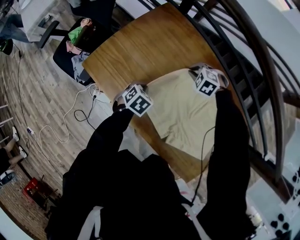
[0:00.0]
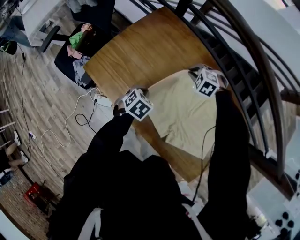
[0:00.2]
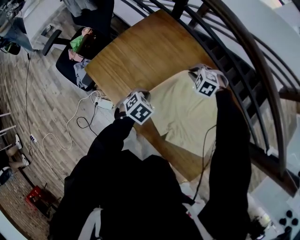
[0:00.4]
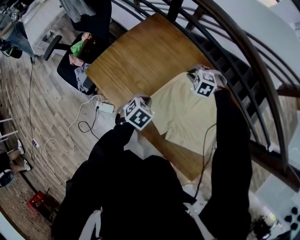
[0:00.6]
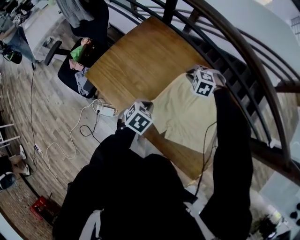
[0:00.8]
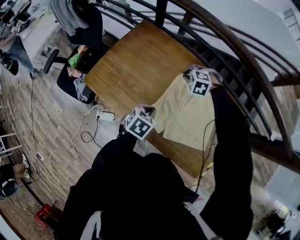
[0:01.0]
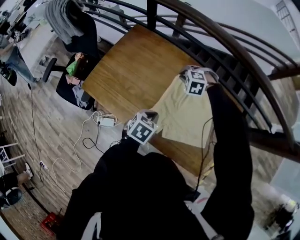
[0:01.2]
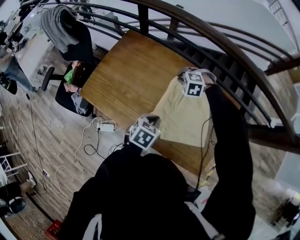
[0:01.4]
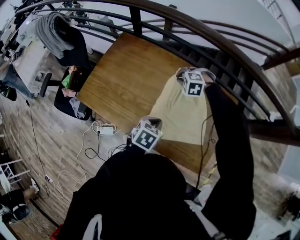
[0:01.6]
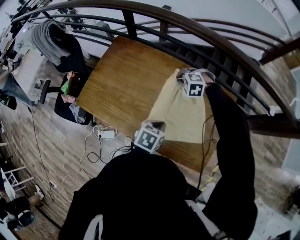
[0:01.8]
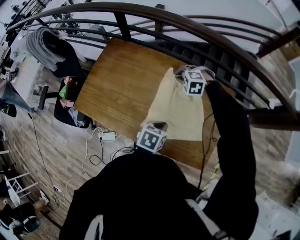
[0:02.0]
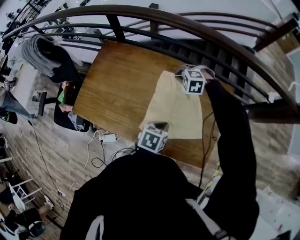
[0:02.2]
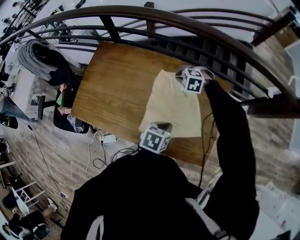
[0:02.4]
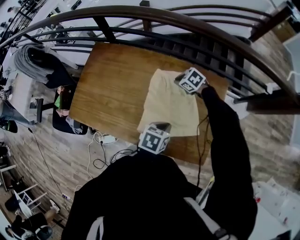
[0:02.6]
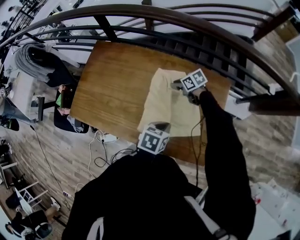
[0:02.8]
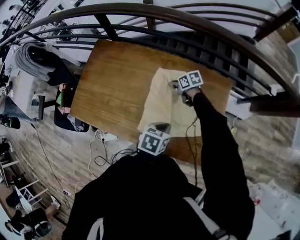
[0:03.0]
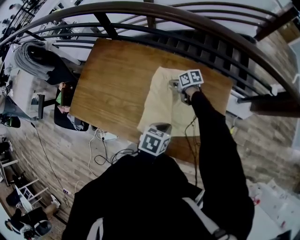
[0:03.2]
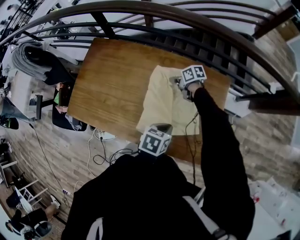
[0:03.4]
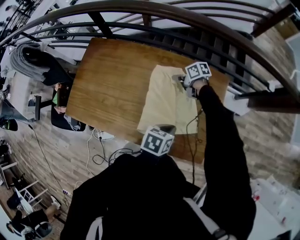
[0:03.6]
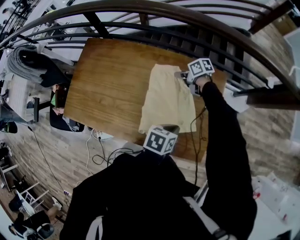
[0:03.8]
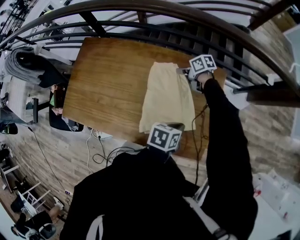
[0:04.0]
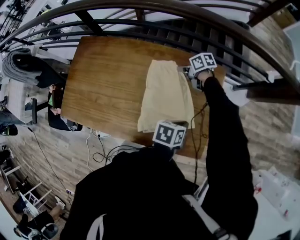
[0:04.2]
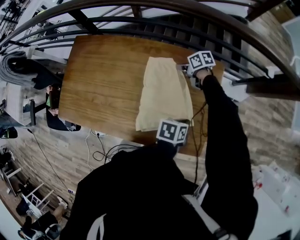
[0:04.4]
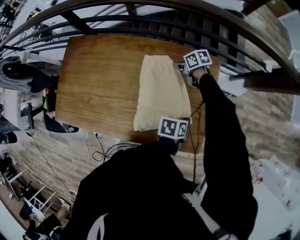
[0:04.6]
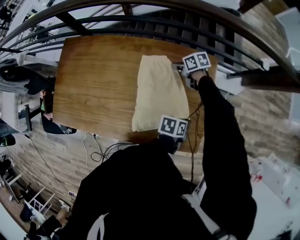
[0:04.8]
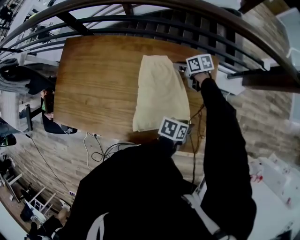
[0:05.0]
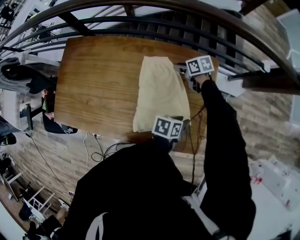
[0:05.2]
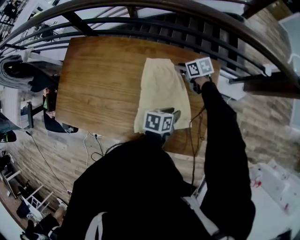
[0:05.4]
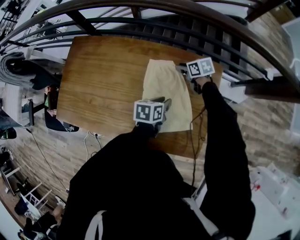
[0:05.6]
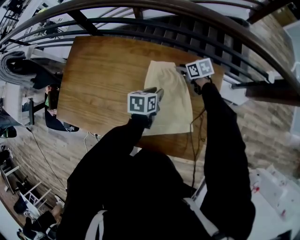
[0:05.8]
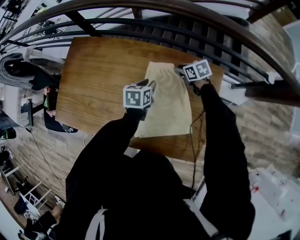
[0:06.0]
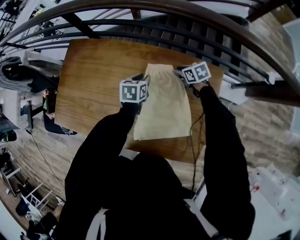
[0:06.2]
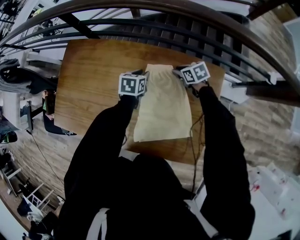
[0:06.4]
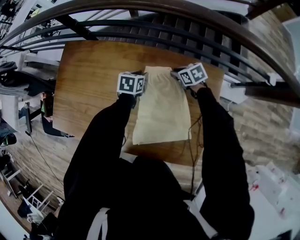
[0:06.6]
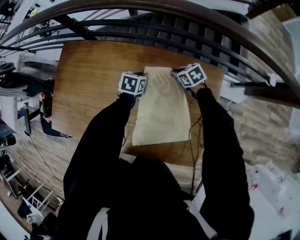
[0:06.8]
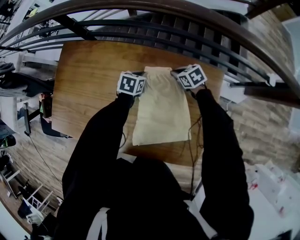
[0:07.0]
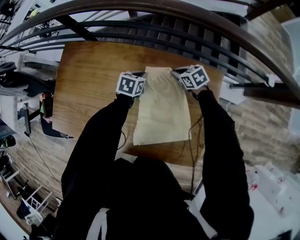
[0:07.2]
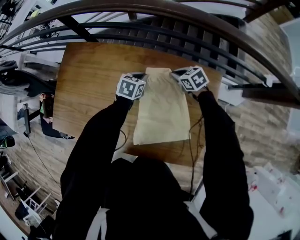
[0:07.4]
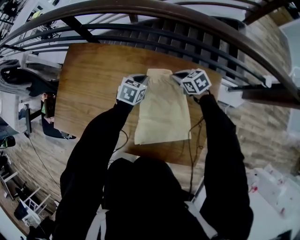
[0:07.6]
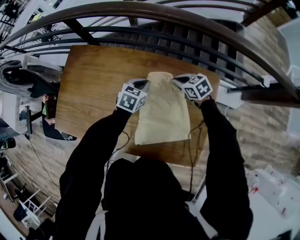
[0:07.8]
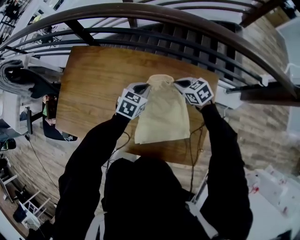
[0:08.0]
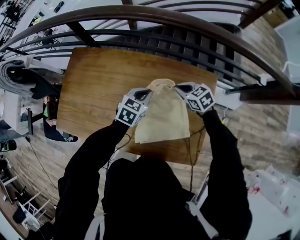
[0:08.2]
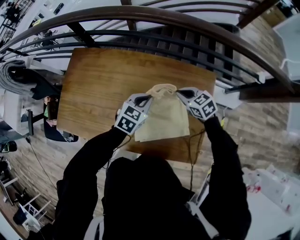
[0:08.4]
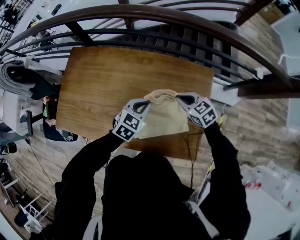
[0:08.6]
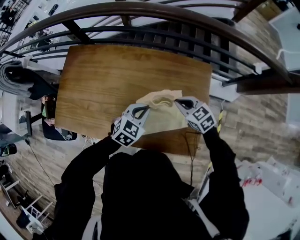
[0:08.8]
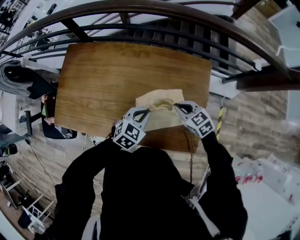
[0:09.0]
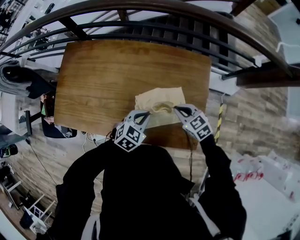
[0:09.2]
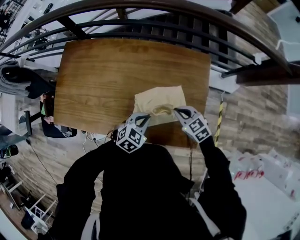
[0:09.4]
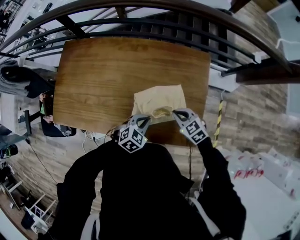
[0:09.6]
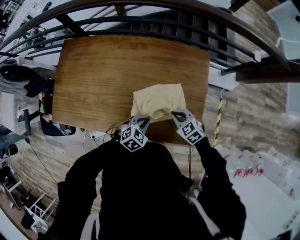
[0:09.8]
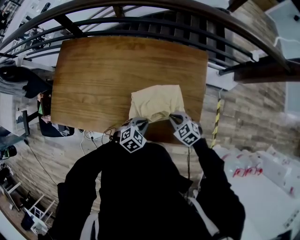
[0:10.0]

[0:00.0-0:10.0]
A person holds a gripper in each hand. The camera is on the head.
0:00.0 to 0:01.4: The right gripper is displaced upward, to the right and backward by approximately 20 cm. Meanwhile the left gripper shifts some 30 cm to the right, upward and backward.
0:01.4 to 0:02.8: The right gripper ends up approximately 15 cm from where it was, and twists about 80 degrees clockwise, seen from behind. Meanwhile the left gripper ends up approximately 15 cm from where it was.
0:02.8 to 0:04.2: The right gripper changes place by about 10 cm, and closes its fingers; the left gripper ends up about 15 cm from where it was.
0:04.2 to 0:05.8: The left gripper ends up approximately 20 cm from where it was, and opens its fingers.
0:05.8 to 0:07.2: The left gripper heads forward, covering about 15 cm, swivels approximately 20 degrees, and closes up.
0:07.2 to 0:08.6: The grippers both shift backward and upward by roughly 25 cm. The left gripper turns by approximately 30 degrees.
0:08.6 to 0:10.0: Both grippers travel together backward and downward, roughly 20 cm. The left gripper turns by about 20 degrees.

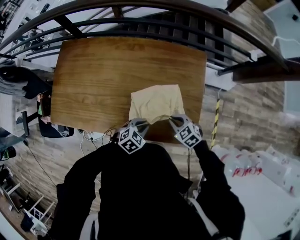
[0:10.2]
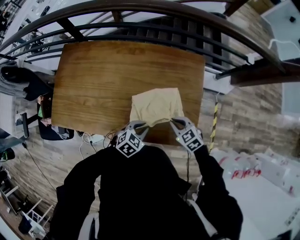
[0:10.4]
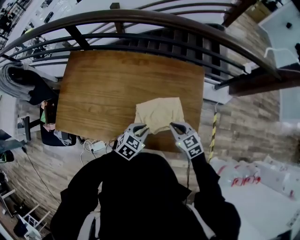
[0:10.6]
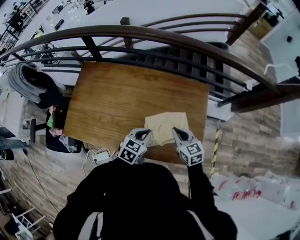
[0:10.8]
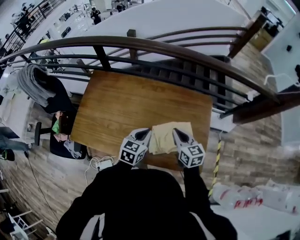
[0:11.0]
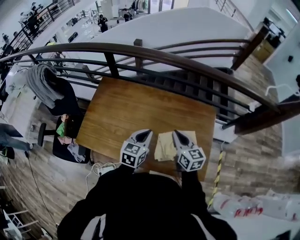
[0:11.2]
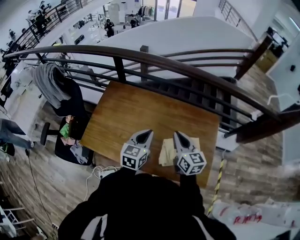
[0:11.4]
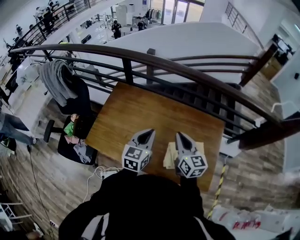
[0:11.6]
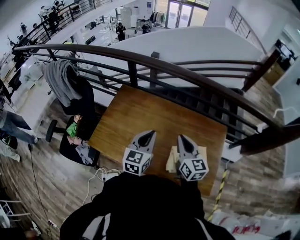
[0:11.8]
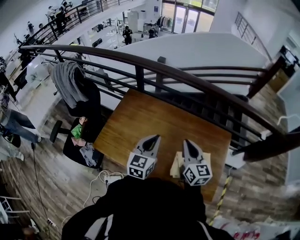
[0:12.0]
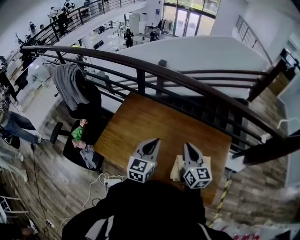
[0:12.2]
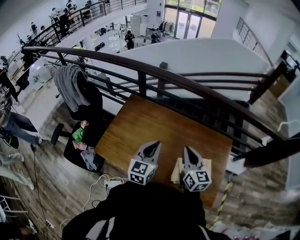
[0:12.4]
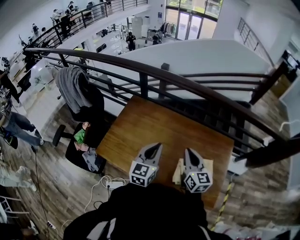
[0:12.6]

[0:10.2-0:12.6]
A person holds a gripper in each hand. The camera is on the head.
0:10.2 to 0:11.4: The right gripper is displaced upward and to the left by approximately 35 cm, and points its fingers approximately 40 degrees further upward, while the left gripper shifts approximately 35 cm upward, to the left and forward, and angles its fingers upward, by approximately 30 degrees.
0:11.4 to 0:12.6: The right gripper moves roughly 5 cm; the left gripper is displaced to the left by about 5 cm.

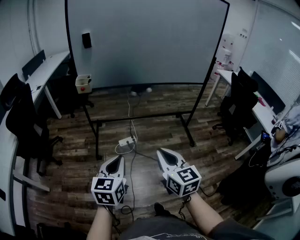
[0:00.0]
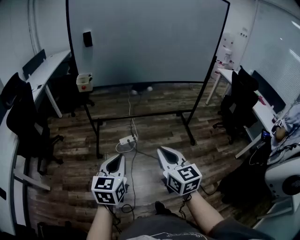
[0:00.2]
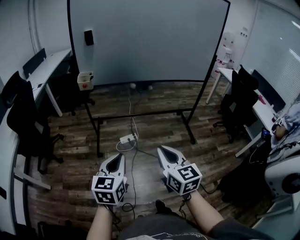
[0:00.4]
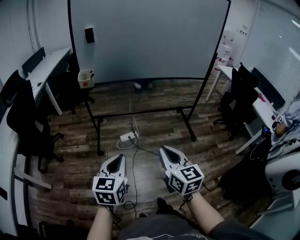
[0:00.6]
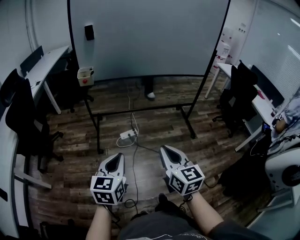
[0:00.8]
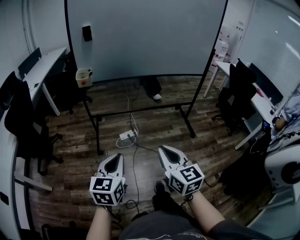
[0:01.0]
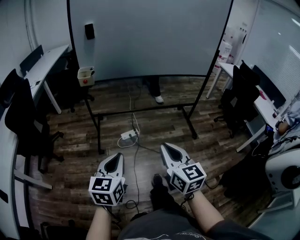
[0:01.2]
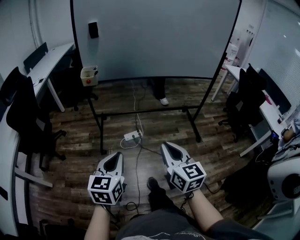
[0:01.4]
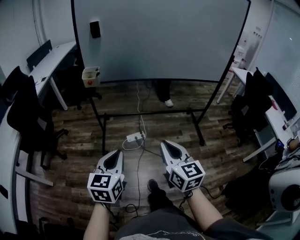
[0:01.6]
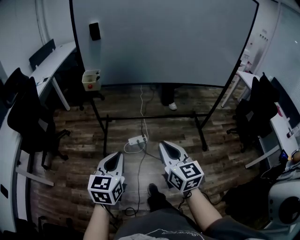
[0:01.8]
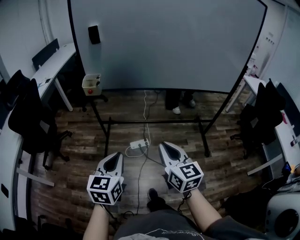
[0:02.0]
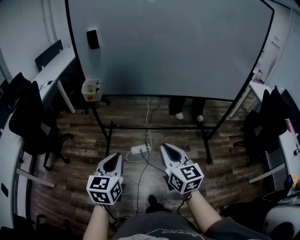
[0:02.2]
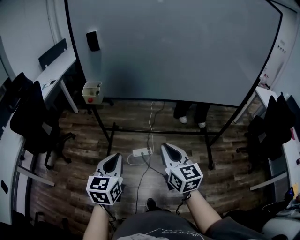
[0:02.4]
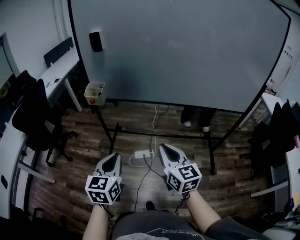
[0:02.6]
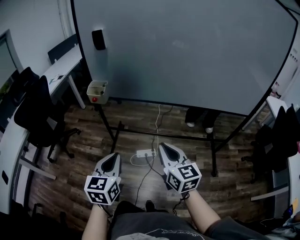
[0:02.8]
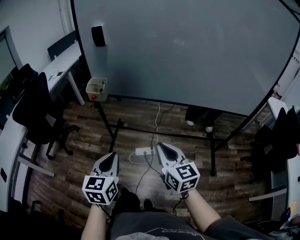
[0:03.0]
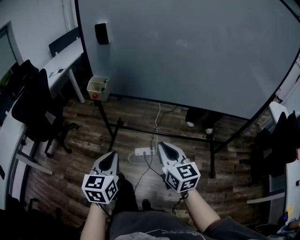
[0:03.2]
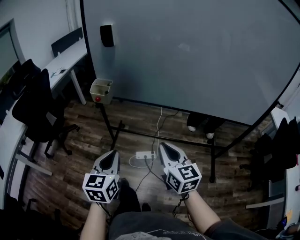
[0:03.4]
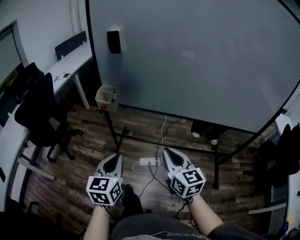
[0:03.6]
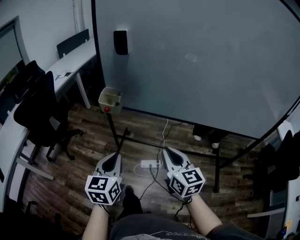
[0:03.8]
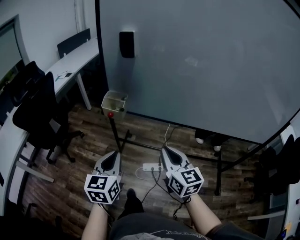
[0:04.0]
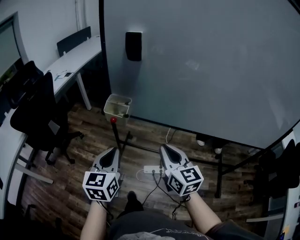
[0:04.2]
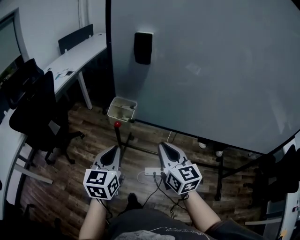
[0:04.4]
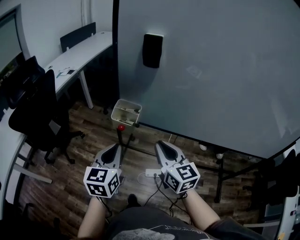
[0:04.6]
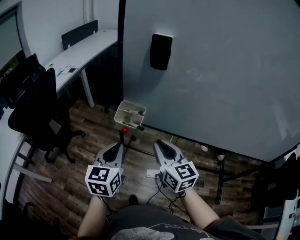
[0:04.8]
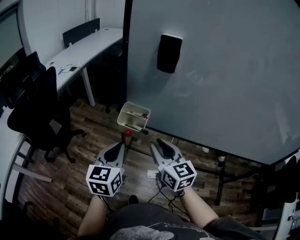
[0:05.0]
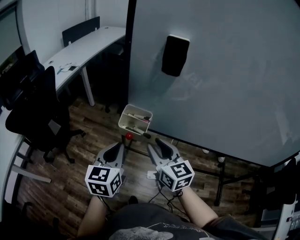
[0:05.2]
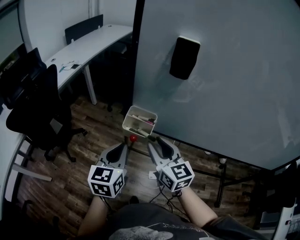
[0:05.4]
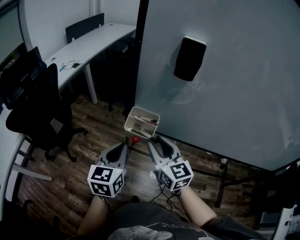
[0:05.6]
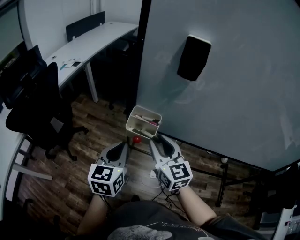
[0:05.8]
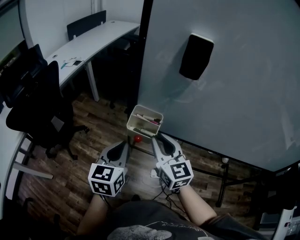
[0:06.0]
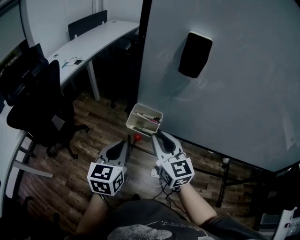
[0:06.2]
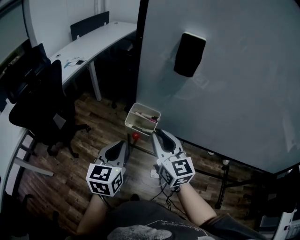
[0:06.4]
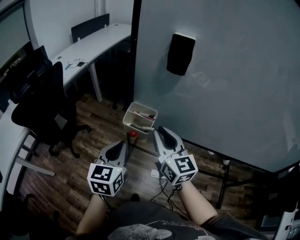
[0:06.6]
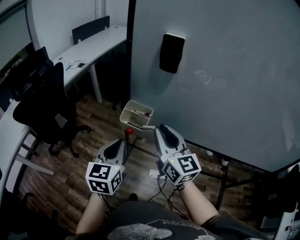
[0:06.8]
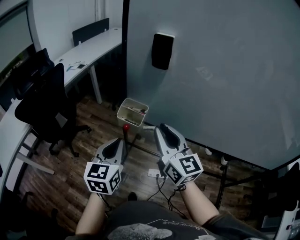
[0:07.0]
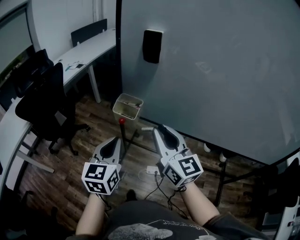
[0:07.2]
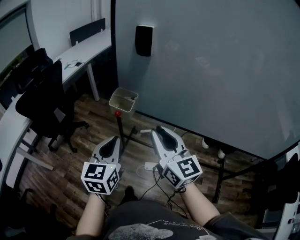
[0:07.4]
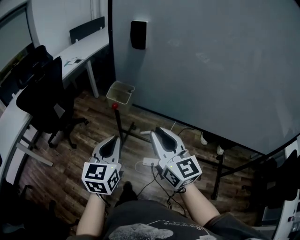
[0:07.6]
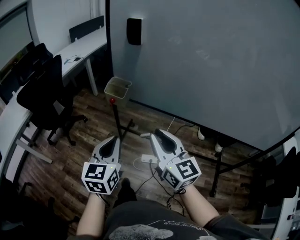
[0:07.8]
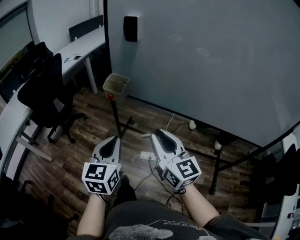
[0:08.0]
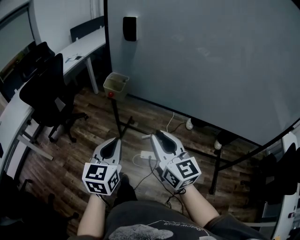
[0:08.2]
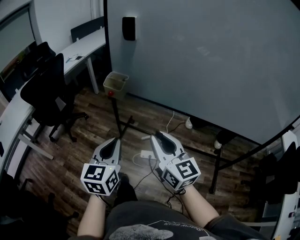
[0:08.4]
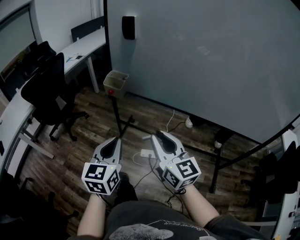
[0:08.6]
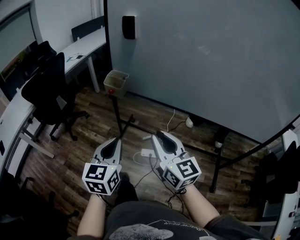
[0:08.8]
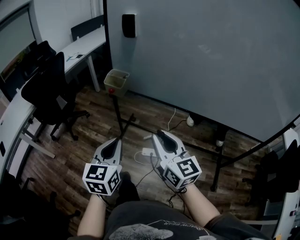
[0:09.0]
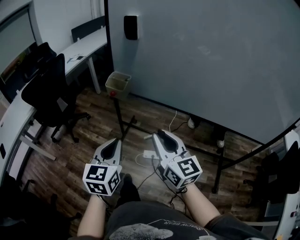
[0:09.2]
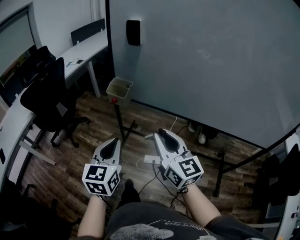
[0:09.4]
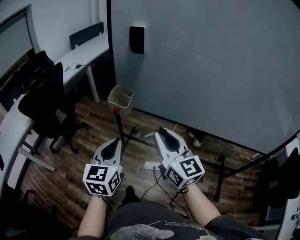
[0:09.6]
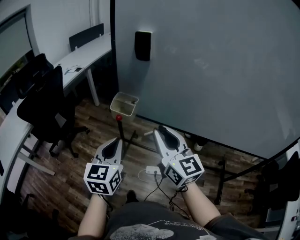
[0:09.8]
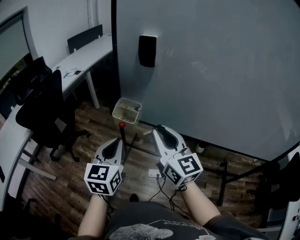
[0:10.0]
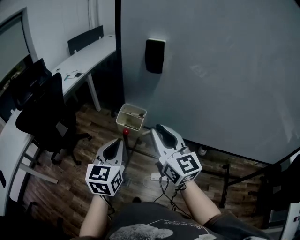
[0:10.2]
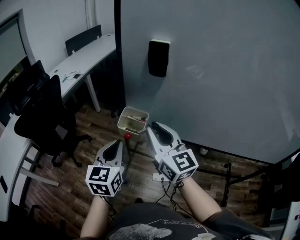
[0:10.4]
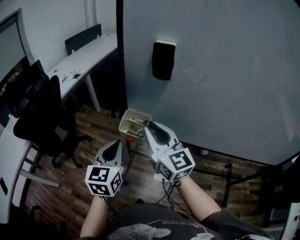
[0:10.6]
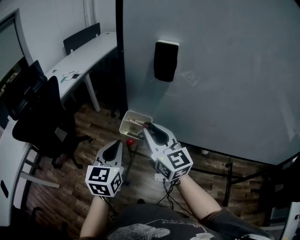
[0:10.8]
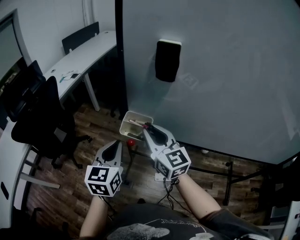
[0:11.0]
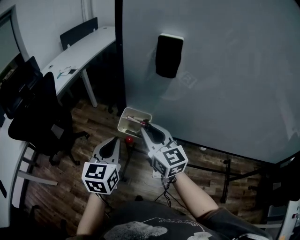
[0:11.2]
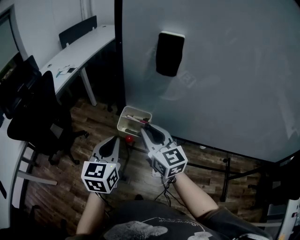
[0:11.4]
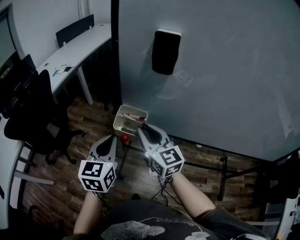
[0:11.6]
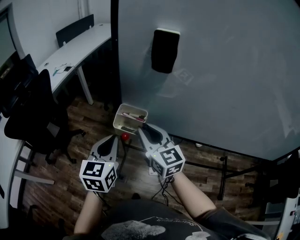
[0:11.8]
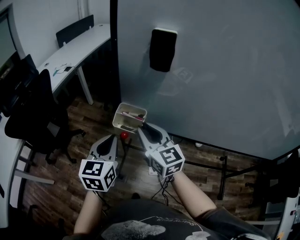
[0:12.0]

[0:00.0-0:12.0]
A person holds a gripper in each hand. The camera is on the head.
0:00.0 to 0:01.6: Both grippers travel together forward, approximately 10 cm.
0:01.6 to 0:03.0: The two grippers go some 20 cm forward.
0:03.0 to 0:04.4: The two grippers go roughly 25 cm forward and to the left.
0:04.4 to 0:06.0: Both grippers move forward and to the left, roughly 15 cm.
0:06.0 to 0:07.6: Both grippers move backward and to the right, about 20 cm.
0:07.6 to 0:09.0: Both grippers travel together backward, roughly 10 cm.
0:09.0 to 0:10.4: The right gripper travels forward and to the left by some 30 cm; the left gripper is displaced forward by roughly 25 cm.
0:10.4 to 0:12.0: The right gripper shifts about 10 cm downward. Meanwhile the left gripper shifts by about 5 cm.
